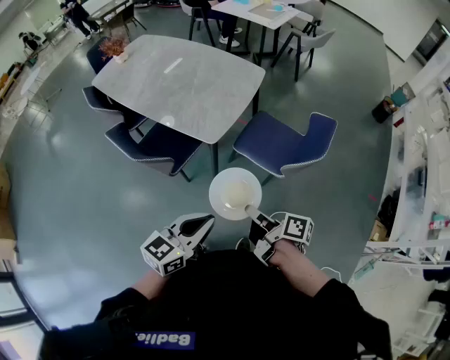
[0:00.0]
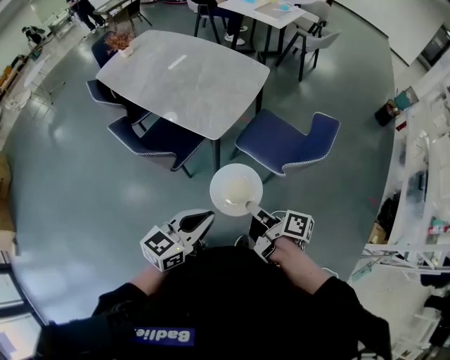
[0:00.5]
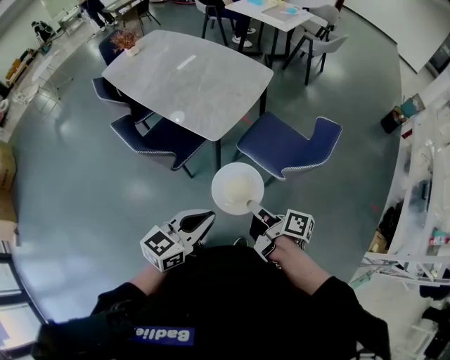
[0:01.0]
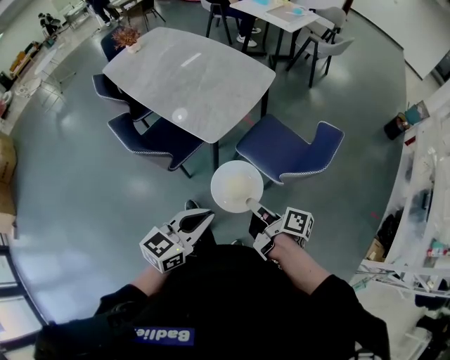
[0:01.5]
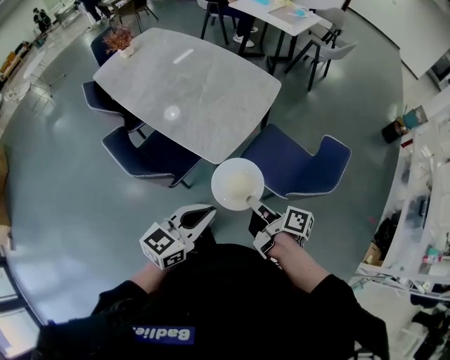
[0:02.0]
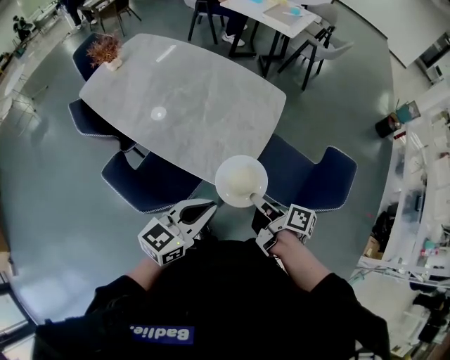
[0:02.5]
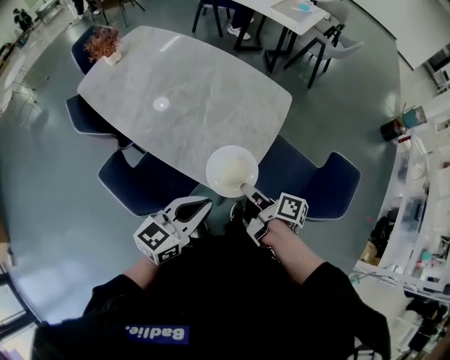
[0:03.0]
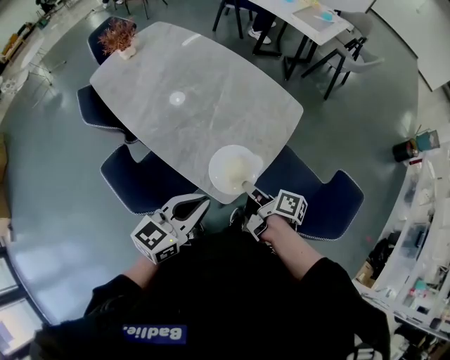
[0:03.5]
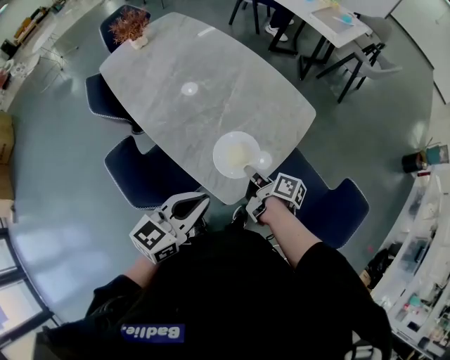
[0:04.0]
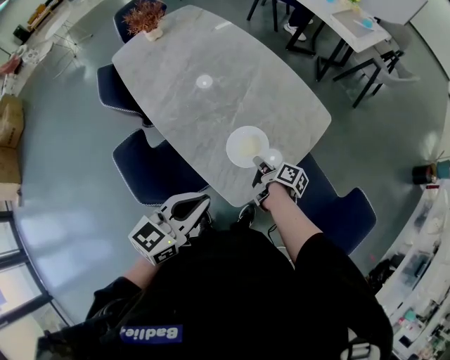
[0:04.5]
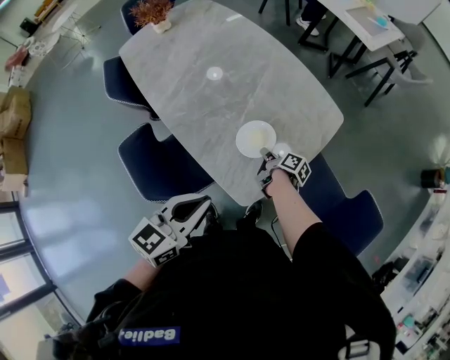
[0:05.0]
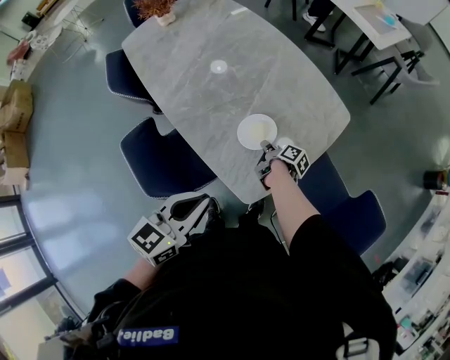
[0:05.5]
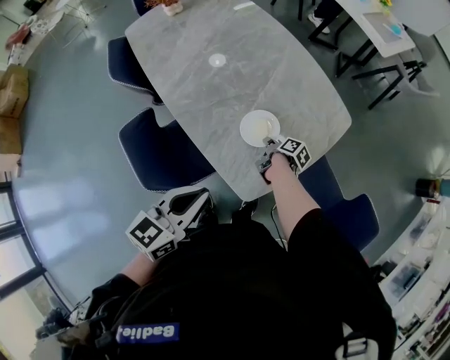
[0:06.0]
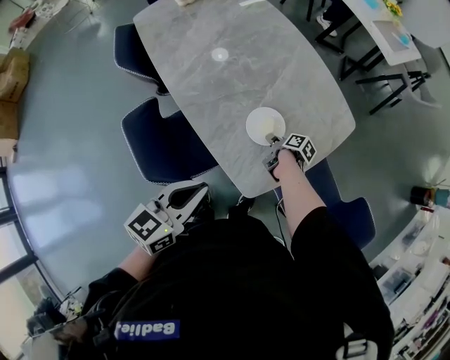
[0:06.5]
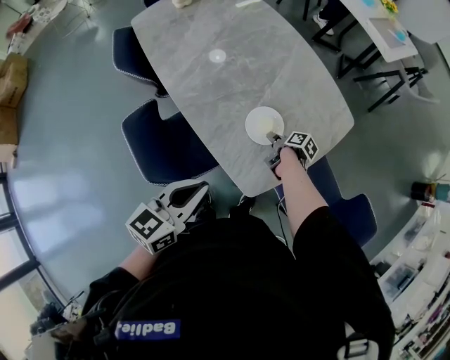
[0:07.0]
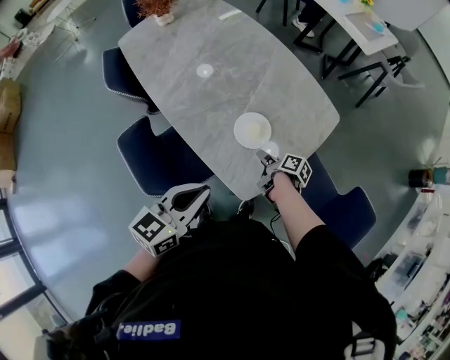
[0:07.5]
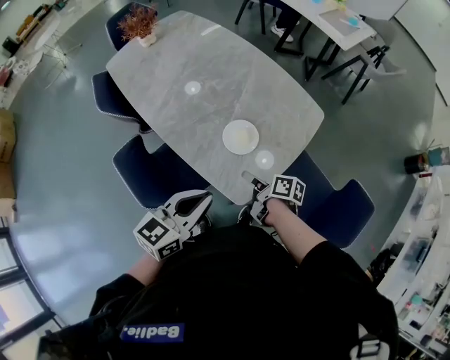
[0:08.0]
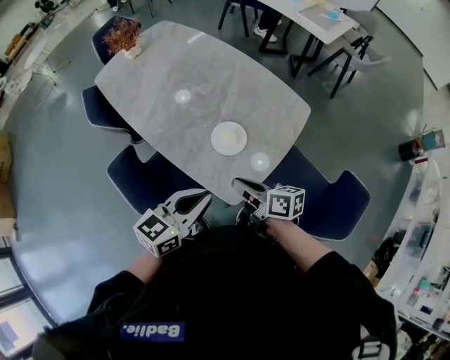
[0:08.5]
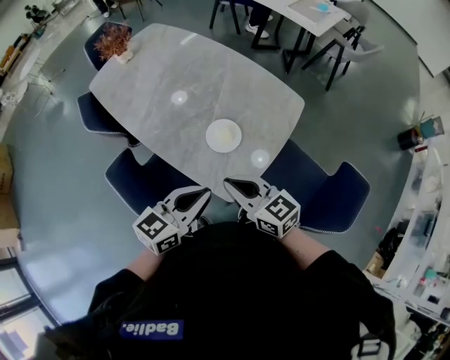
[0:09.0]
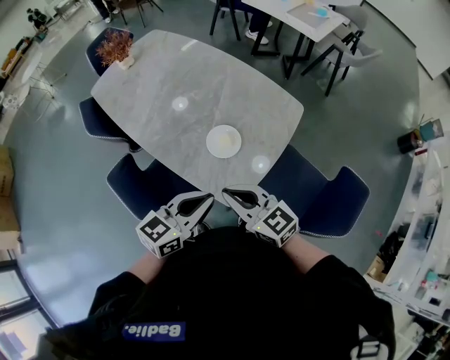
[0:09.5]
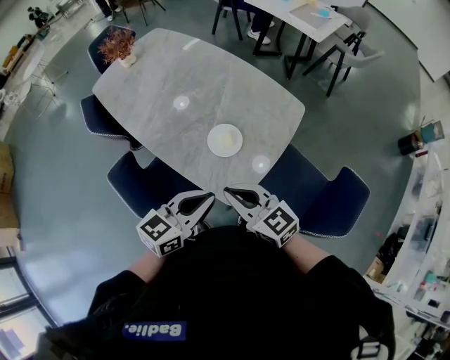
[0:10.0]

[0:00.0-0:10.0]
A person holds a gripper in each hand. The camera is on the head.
0:00.0 to 0:02.0: The left gripper moves about 15 cm.
0:02.0 to 0:04.0: The left gripper moves about 25 cm.
0:04.0 to 0:06.0: The left gripper ends up some 5 cm from where it was.

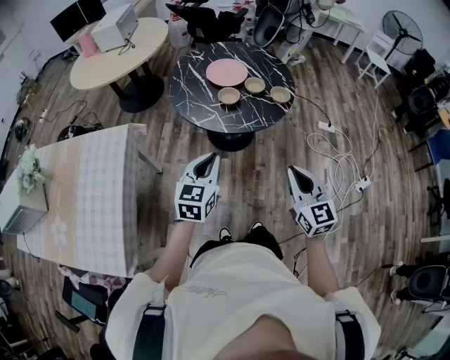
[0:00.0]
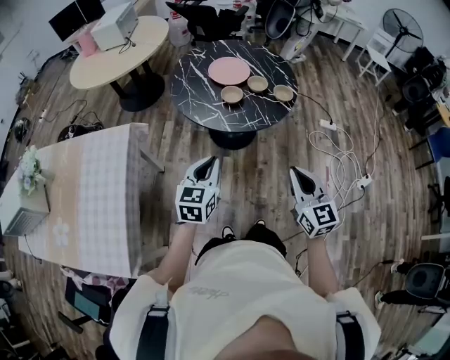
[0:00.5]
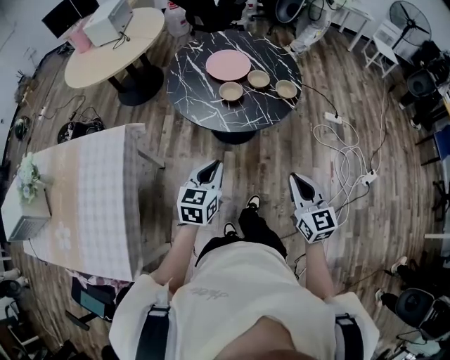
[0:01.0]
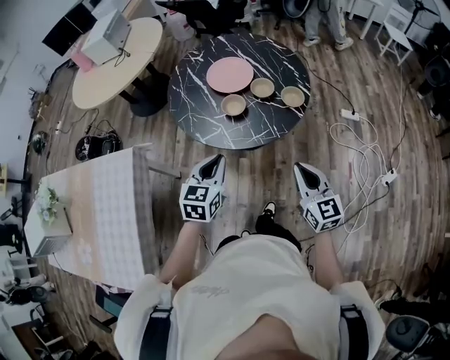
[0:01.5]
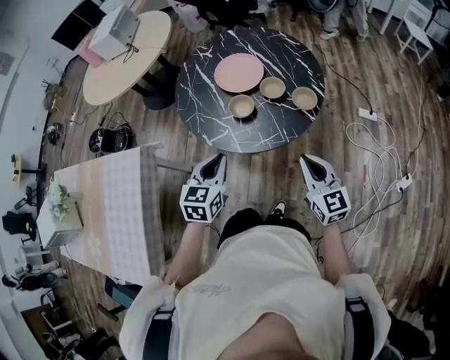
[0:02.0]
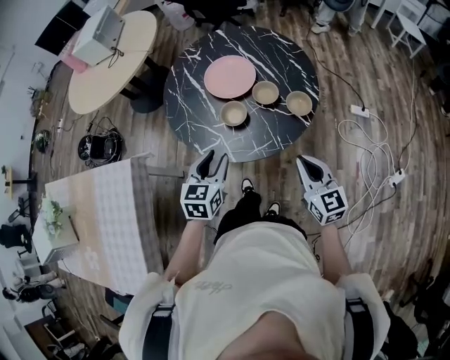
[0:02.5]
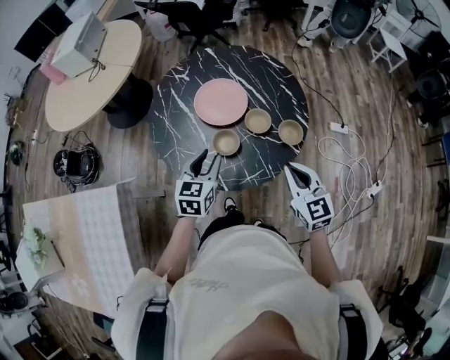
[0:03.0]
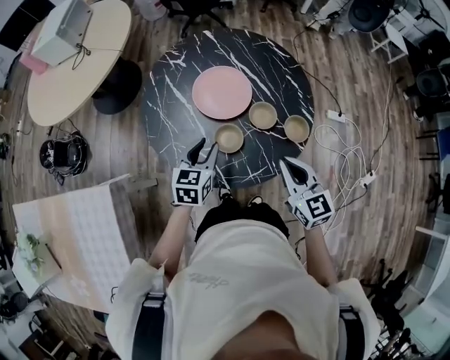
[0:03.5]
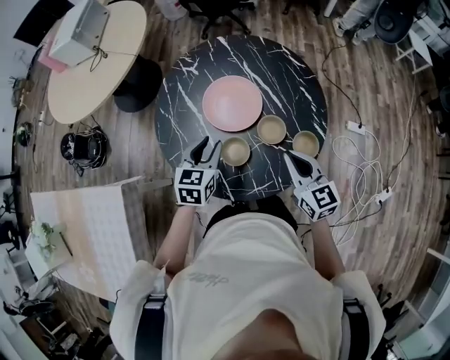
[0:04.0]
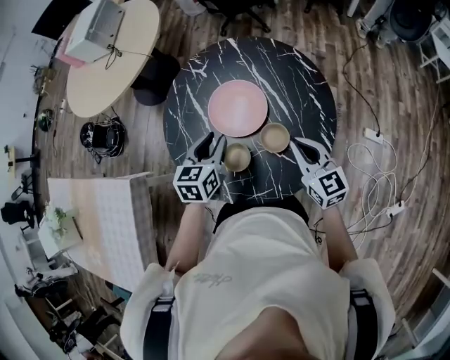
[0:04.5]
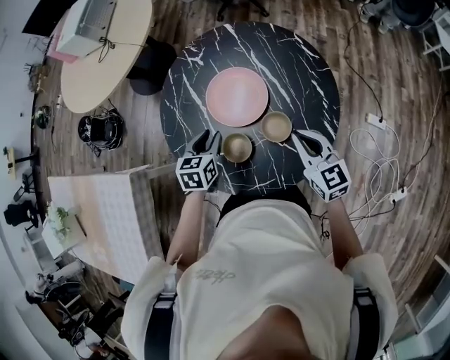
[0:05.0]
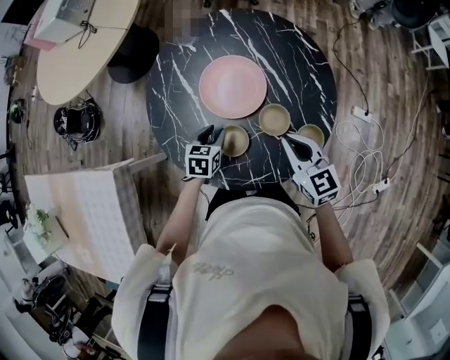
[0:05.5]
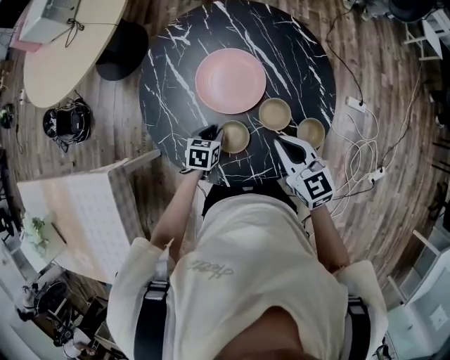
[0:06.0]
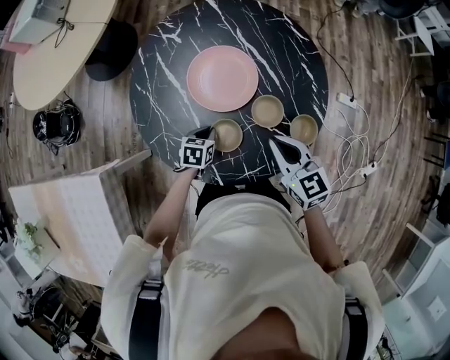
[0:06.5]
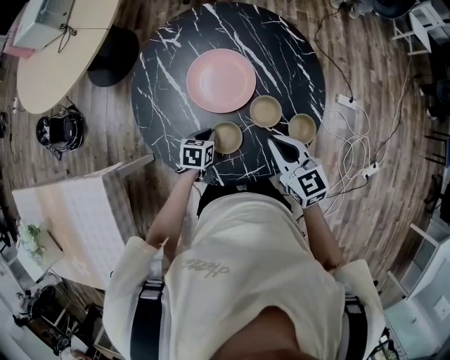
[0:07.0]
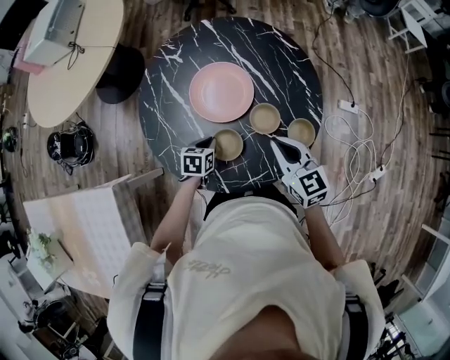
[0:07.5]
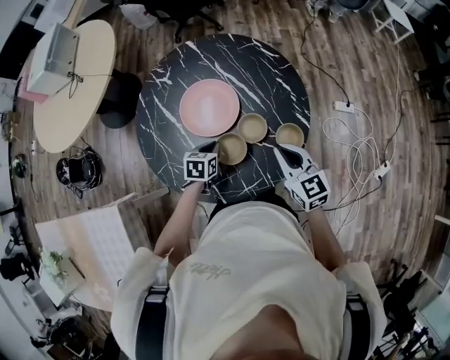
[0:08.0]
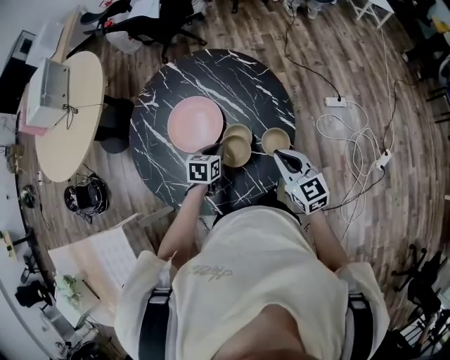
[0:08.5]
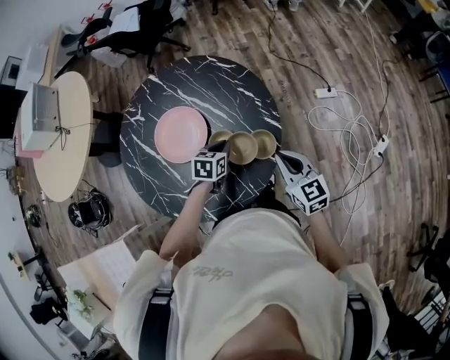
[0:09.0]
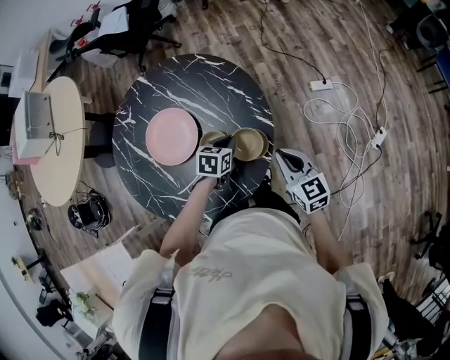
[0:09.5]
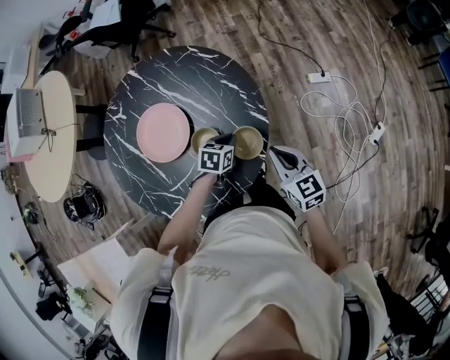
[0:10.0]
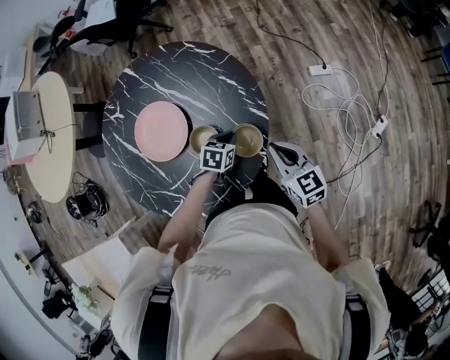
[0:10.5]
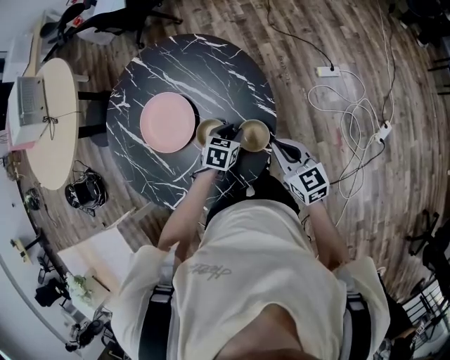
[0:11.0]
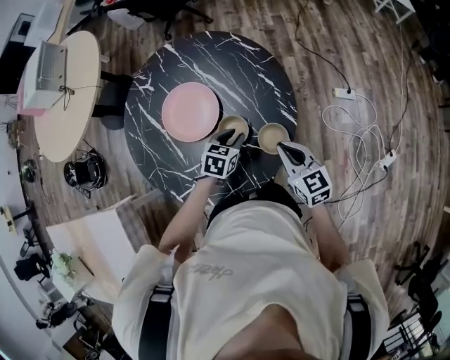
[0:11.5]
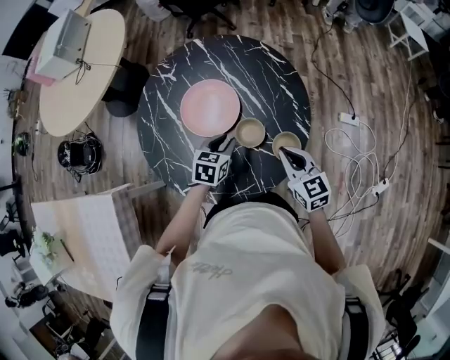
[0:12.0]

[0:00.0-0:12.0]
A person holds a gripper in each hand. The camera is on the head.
0:00.0 to 0:02.0: The two grippers go roughly 20 cm forward.
0:02.0 to 0:04.0: Both grippers move forward, approximately 25 cm. The left gripper opens up.
0:04.0 to 0:06.0: The left gripper shifts roughly 20 cm downward, and turns by about 30 degrees. Meanwhile the right gripper shifts by roughly 5 cm.
0:06.0 to 0:08.0: The left gripper is displaced upward and to the right by roughly 10 cm, and closes its fingers, while the right gripper heads to the right, covering about 5 cm.
0:08.0 to 0:10.0: The right gripper goes roughly 15 cm to the right. Meanwhile the left gripper is displaced to the right by approximately 25 cm.
0:10.0 to 0:12.0: The right gripper is displaced to the left by roughly 10 cm. Meanwhile the left gripper goes approximately 20 cm to the left and upward, turns by some 20 degrees, and opens up.

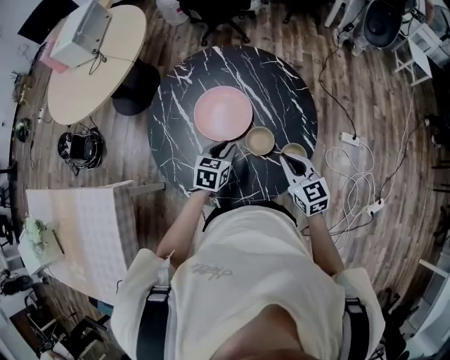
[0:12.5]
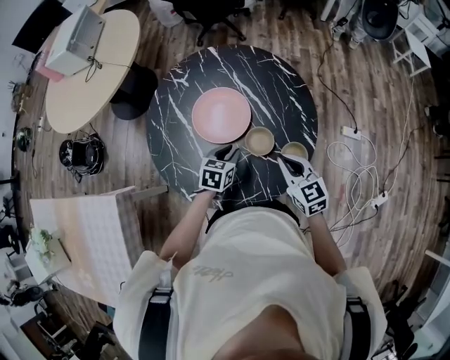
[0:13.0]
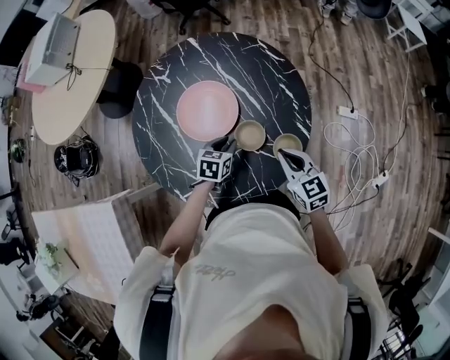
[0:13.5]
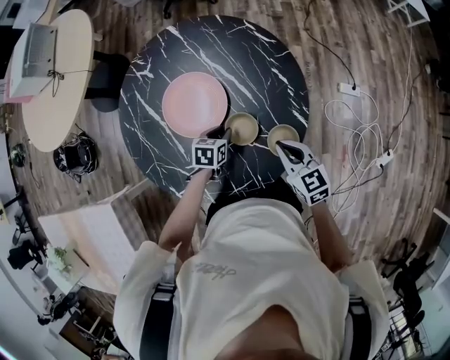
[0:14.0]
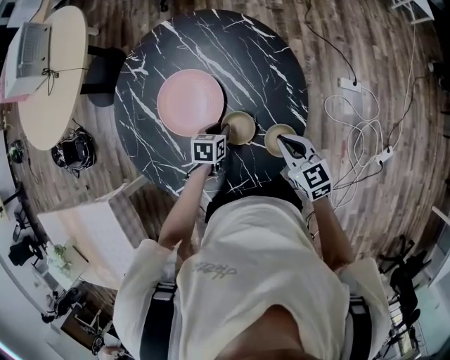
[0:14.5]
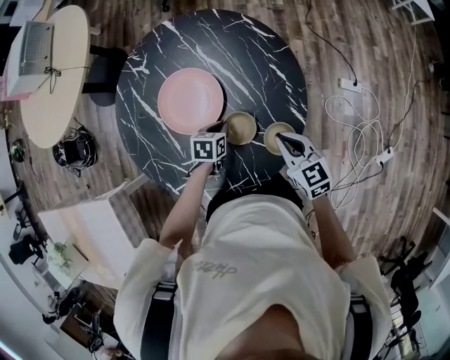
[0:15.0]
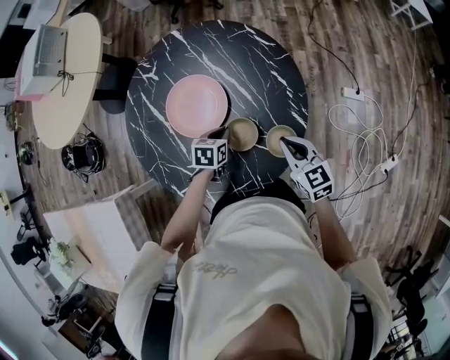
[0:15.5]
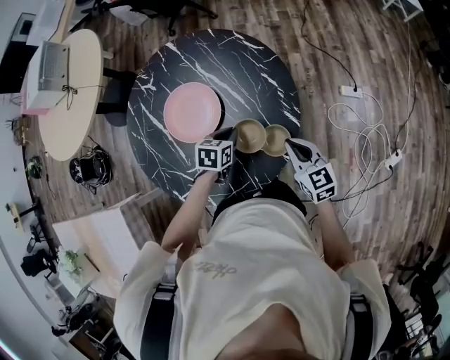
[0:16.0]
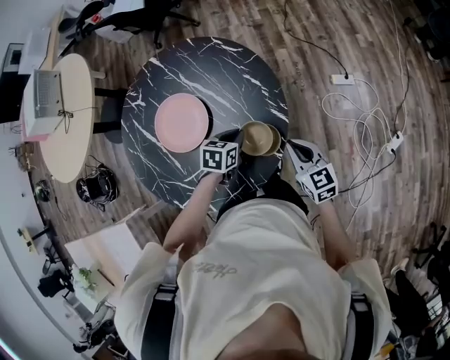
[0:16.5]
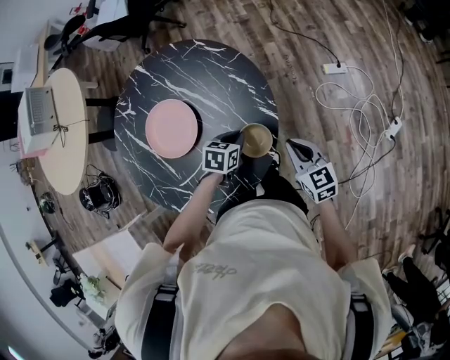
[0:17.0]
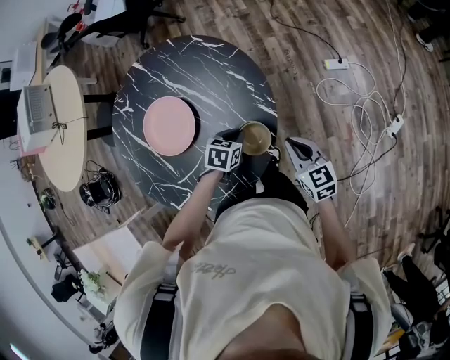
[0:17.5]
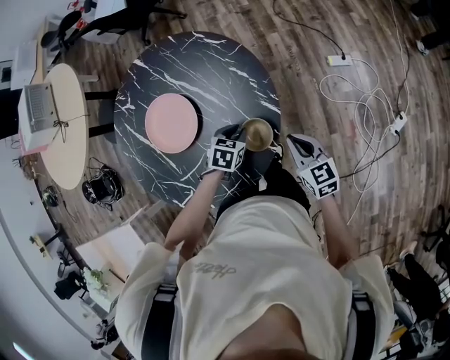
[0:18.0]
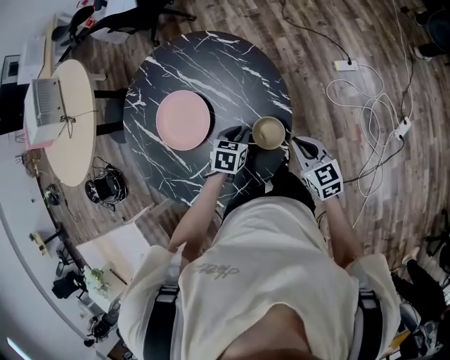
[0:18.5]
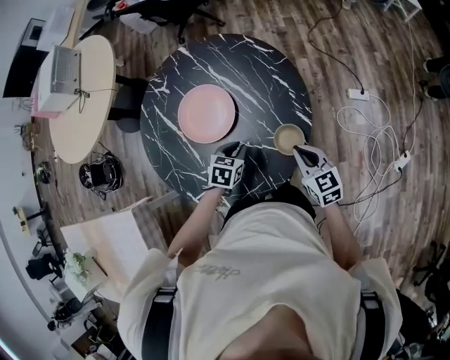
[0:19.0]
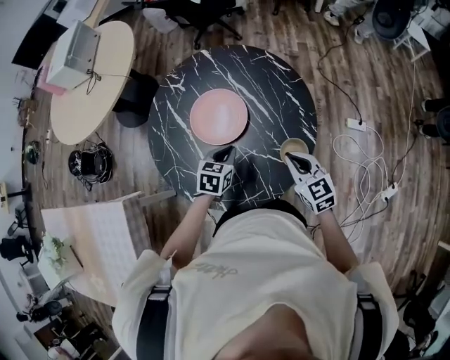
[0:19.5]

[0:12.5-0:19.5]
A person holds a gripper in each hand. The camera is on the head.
0:12.5 to 0:14.5: The right gripper shifts about 10 cm downward and to the right. The left gripper moves downward and to the right, approximately 15 cm, and rotates approximately 20 degrees.
0:14.5 to 0:16.0: The left gripper heads upward and to the right, covering roughly 10 cm, while the right gripper shifts by about 5 cm.
0:16.0 to 0:17.5: The two grippers go approximately 10 cm to the right.
0:17.5 to 0:19.5: The grippers both shift to the left and upward by approximately 20 cm. The left gripper changes its angle by roughly 20 degrees. Meanwhile the right gripper swivels some 20 degrees.
